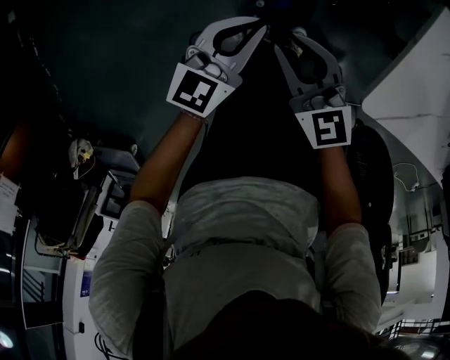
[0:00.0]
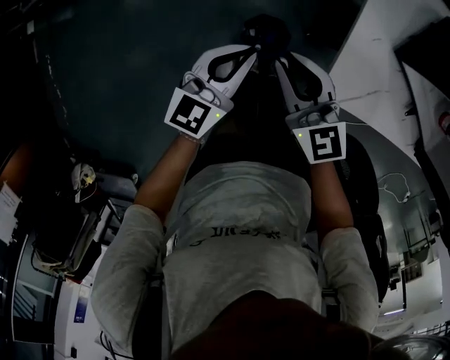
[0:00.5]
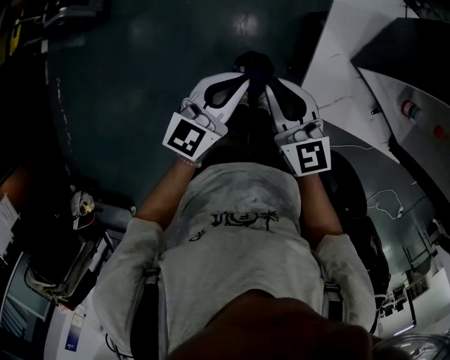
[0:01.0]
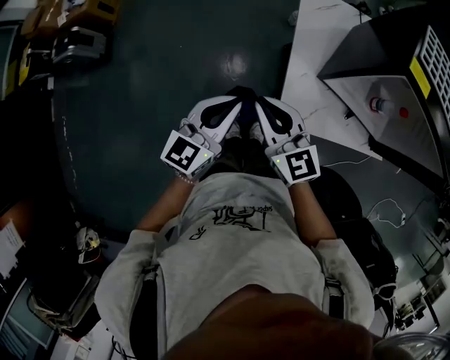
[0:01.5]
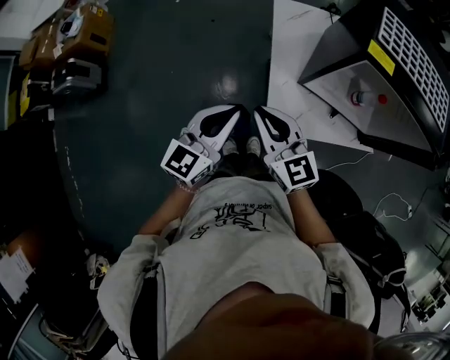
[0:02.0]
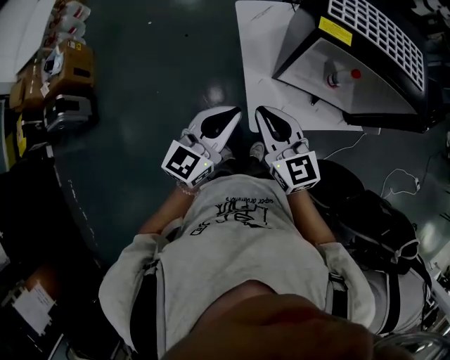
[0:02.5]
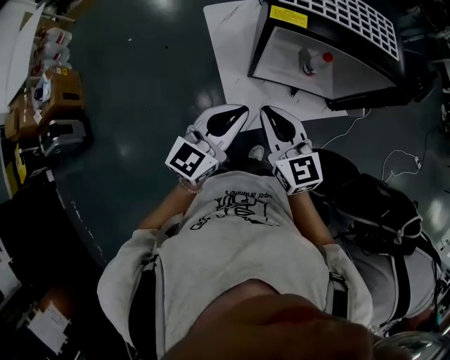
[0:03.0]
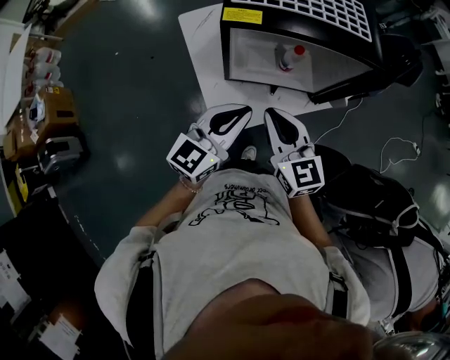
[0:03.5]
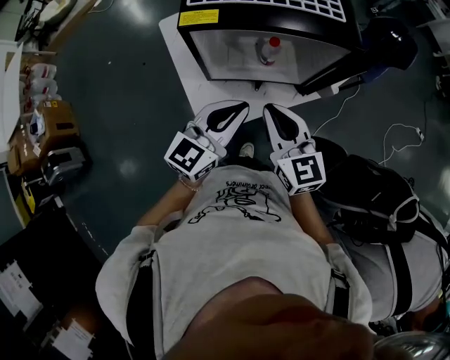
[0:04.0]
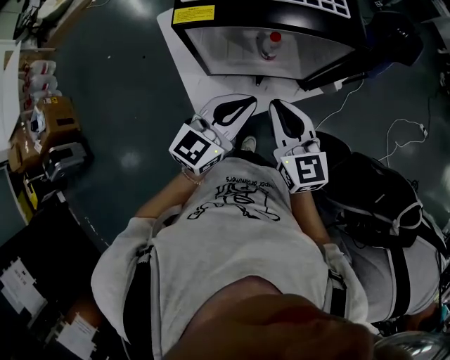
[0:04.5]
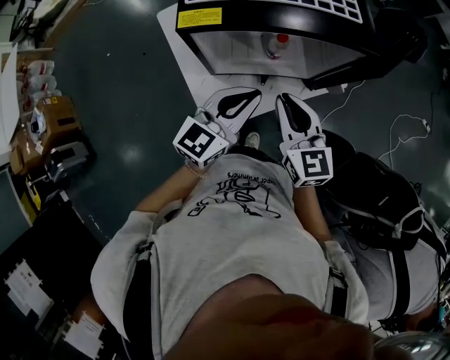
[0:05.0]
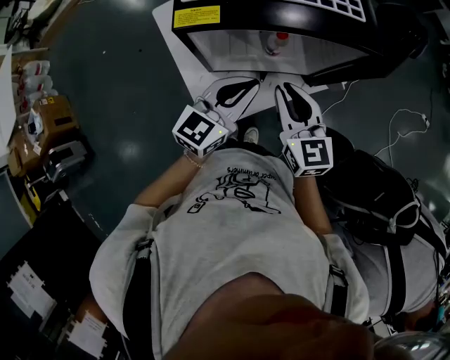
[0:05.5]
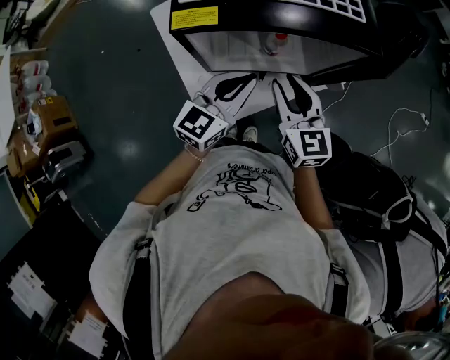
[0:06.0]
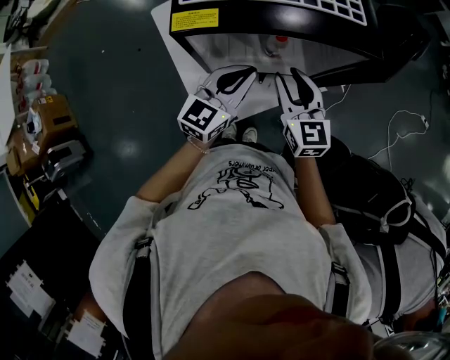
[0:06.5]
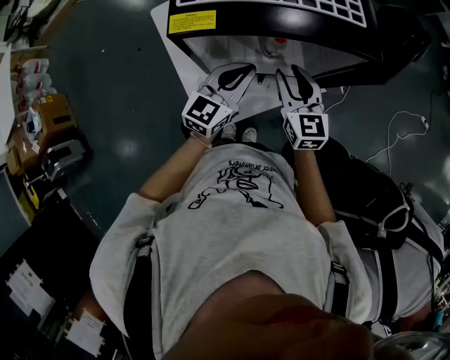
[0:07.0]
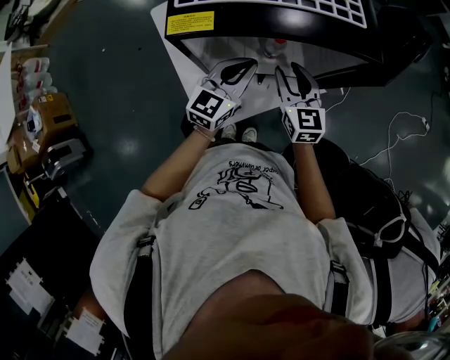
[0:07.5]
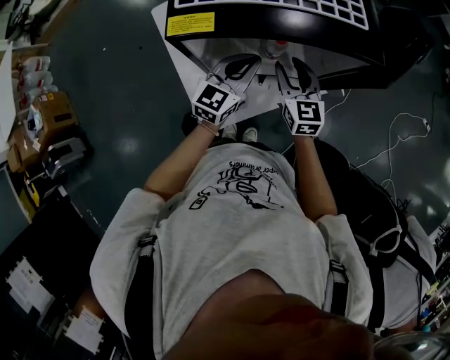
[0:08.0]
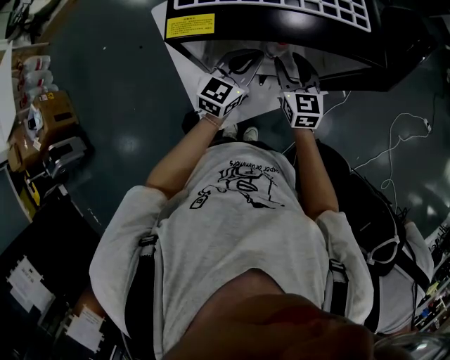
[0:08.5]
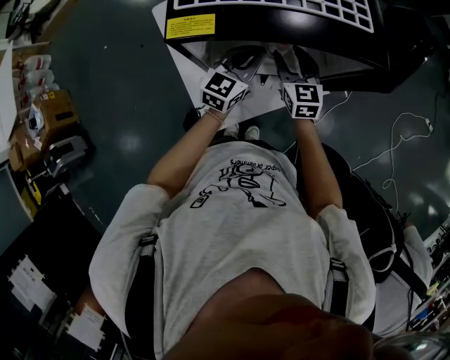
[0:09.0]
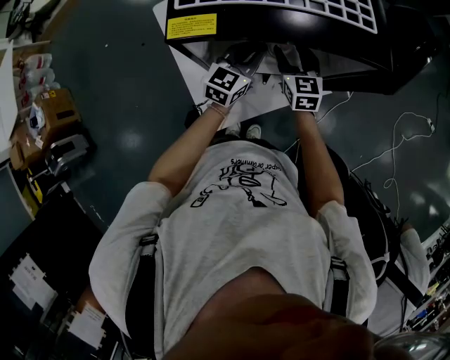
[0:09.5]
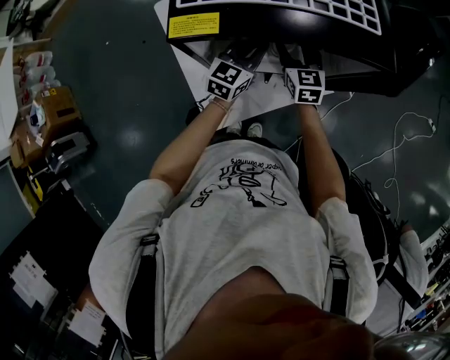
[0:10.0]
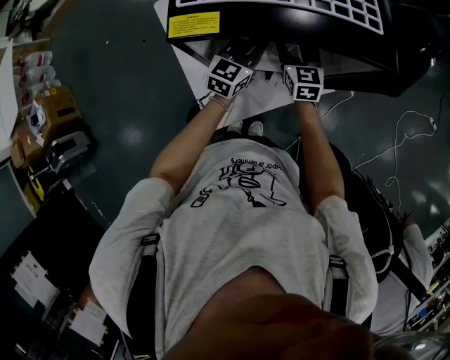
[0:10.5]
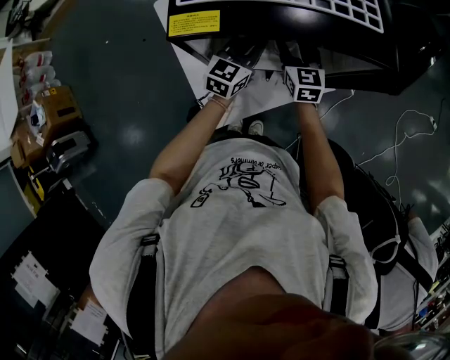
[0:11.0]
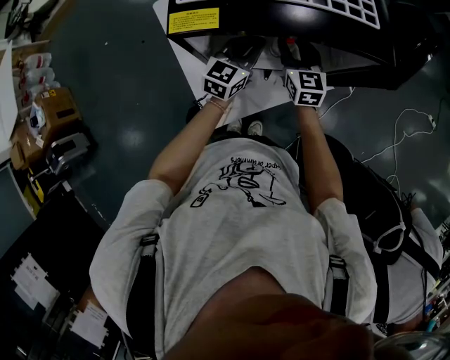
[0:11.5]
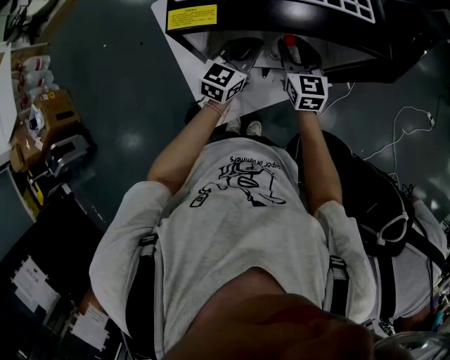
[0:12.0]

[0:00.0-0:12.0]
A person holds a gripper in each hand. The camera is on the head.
0:00.0 to 0:02.0: Both grippers move upward, some 40 cm. The left gripper turns by roughly 20 degrees. The right gripper rotates approximately 20 degrees.
0:02.0 to 0:04.0: The left gripper changes place by about 30 cm, and changes its angle by approximately 30 degrees. The right gripper changes place by roughly 30 cm, and changes its angle by roughly 30 degrees.
0:04.0 to 0:06.0: The grippers both shift forward by some 10 cm.
0:06.0 to 0:08.0: Both grippers move forward and downward, some 10 cm.
0:08.0 to 0:10.0: The right gripper shifts roughly 10 cm forward, while the left gripper is displaced forward and downward by approximately 10 cm.
0:10.0 to 0:12.0: The right gripper shifts approximately 5 cm backward. The left gripper shifts by roughly 5 cm.

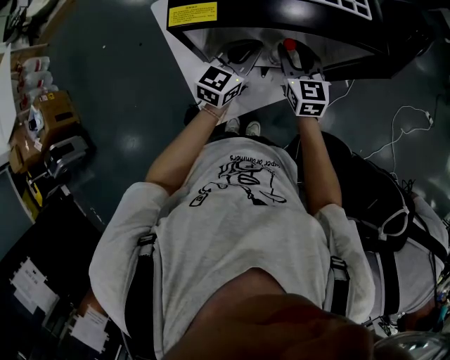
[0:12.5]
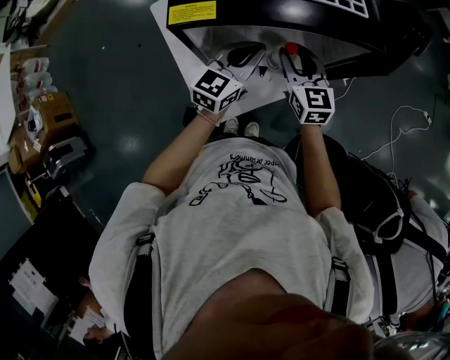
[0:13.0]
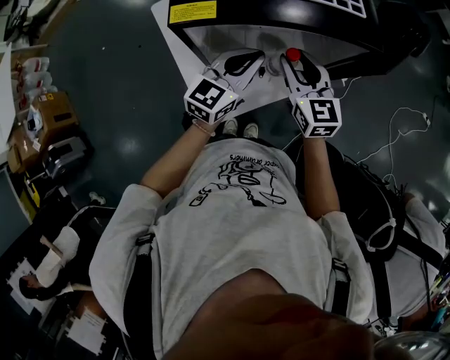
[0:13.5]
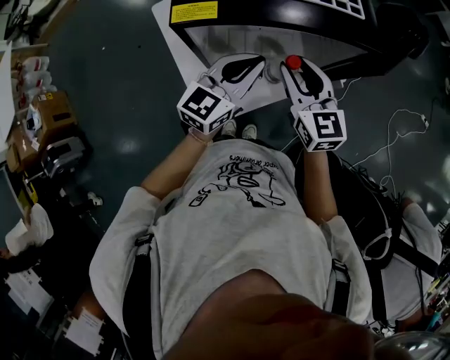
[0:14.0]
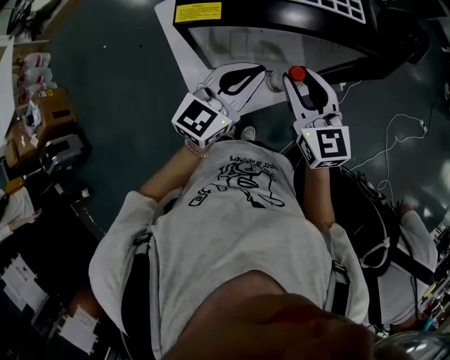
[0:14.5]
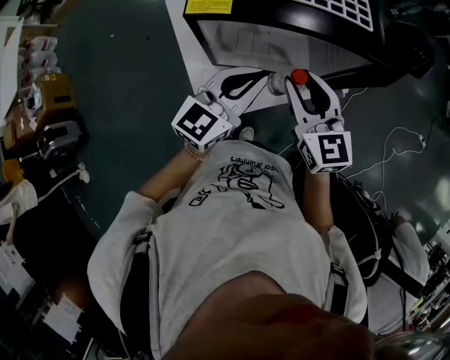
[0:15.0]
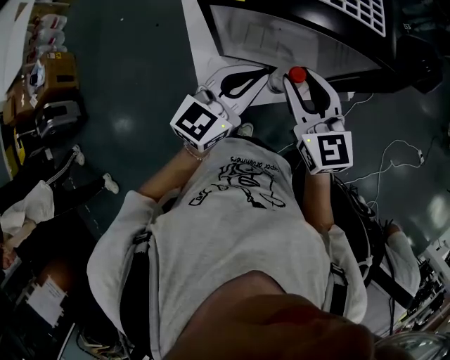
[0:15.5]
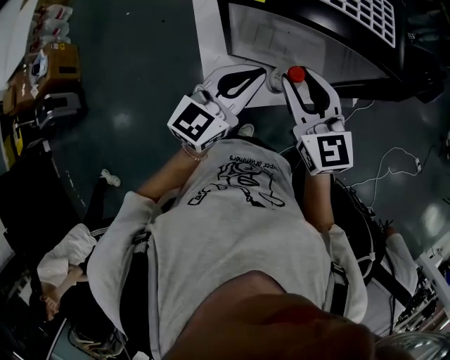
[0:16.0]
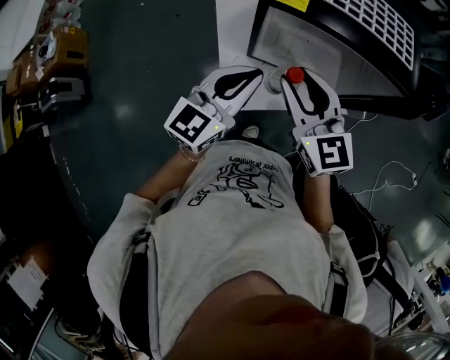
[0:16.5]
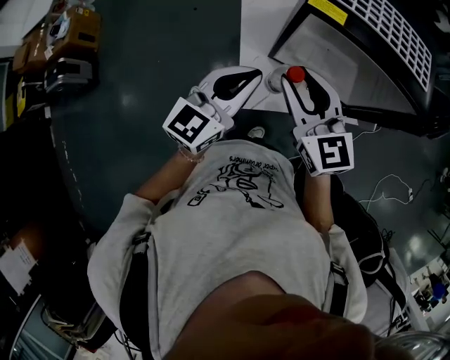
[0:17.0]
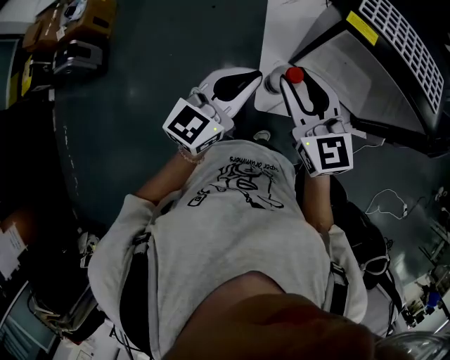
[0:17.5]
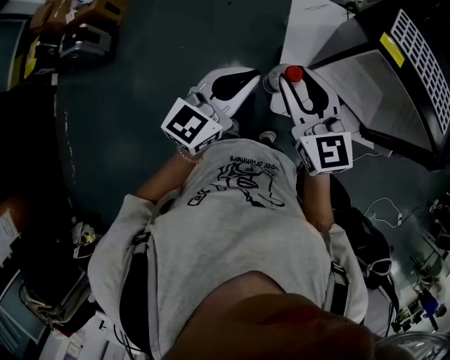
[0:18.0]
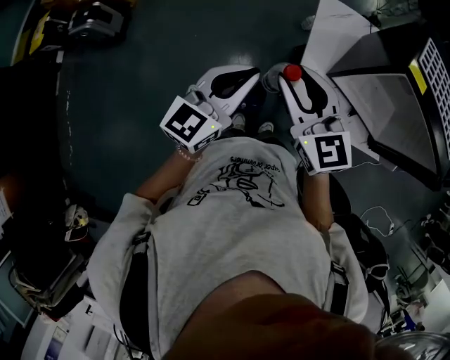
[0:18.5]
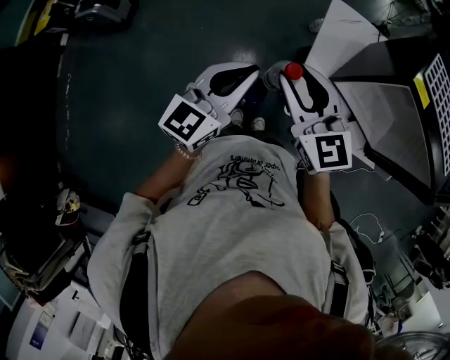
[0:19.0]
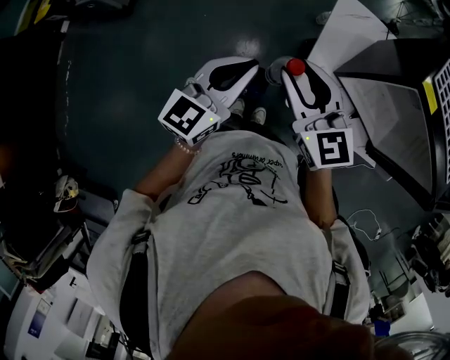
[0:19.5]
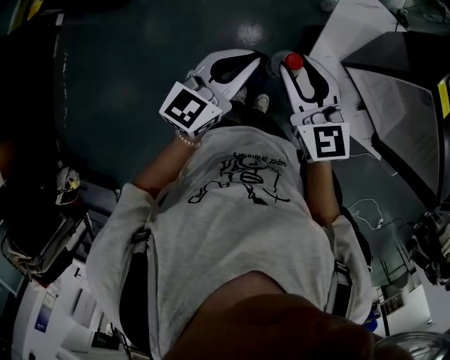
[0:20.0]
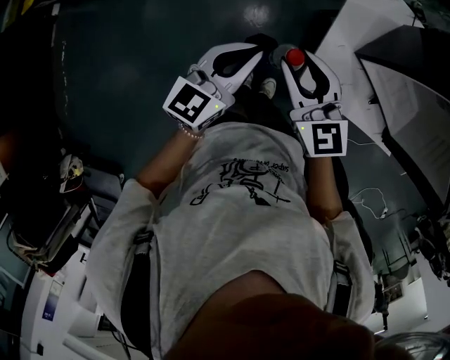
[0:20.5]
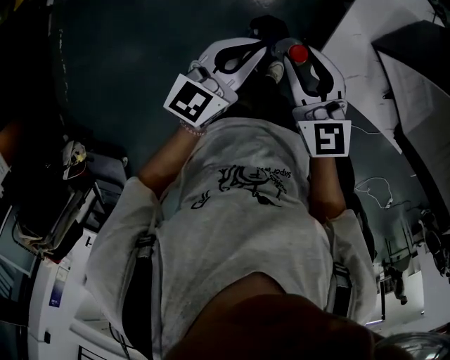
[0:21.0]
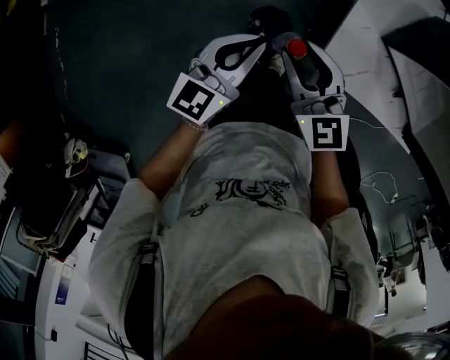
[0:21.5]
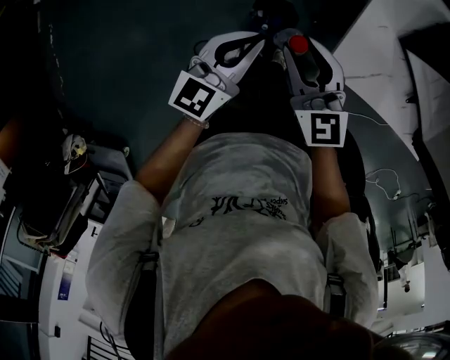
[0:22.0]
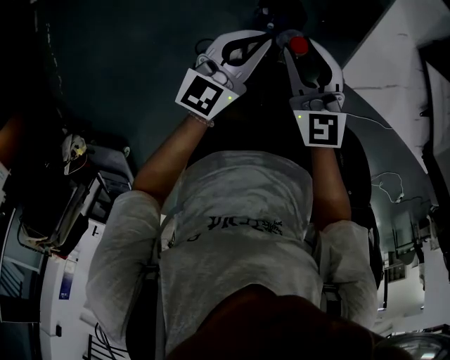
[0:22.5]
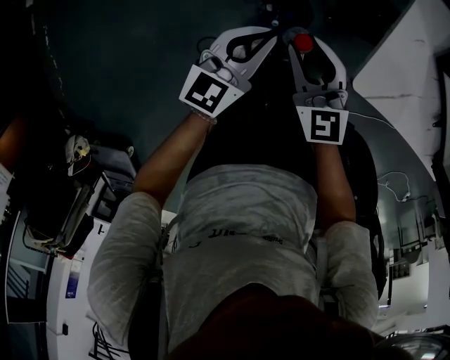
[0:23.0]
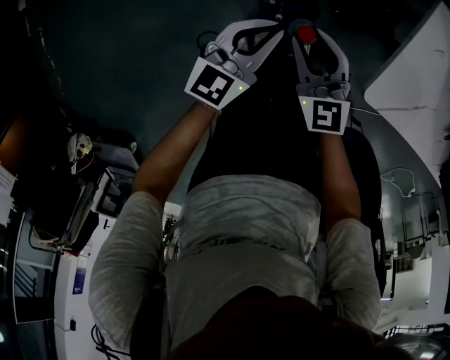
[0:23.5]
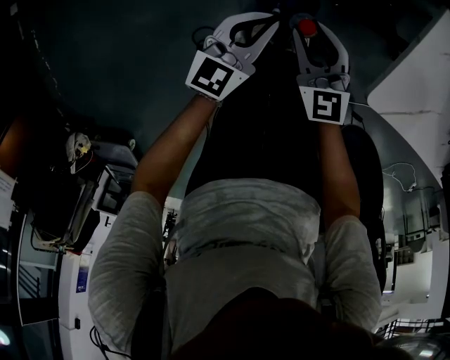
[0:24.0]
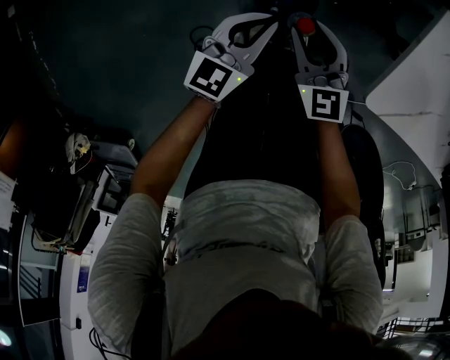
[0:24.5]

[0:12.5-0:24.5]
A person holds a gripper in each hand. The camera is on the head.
0:12.5 to 0:14.5: Both grippers move upward and backward, about 15 cm.
0:14.5 to 0:16.5: The right gripper moves to the left, roughly 10 cm, and turns by approximately 20 degrees; the left gripper moves to the left and backward, some 10 cm.
0:16.5 to 0:18.5: The grippers both shift to the left by approximately 30 cm. The right gripper rotates approximately 20 degrees. Meanwhile the left gripper turns by roughly 20 degrees.
0:18.5 to 0:20.5: Both grippers move downward, roughly 10 cm.
0:20.5 to 0:22.5: The grippers both shift downward by approximately 25 cm.
0:22.5 to 0:24.5: The grippers both shift downward by approximately 20 cm.

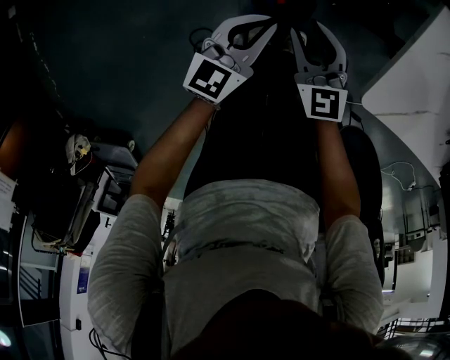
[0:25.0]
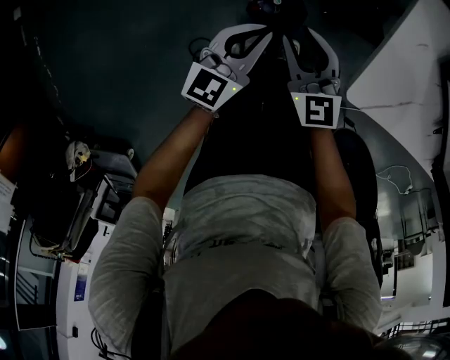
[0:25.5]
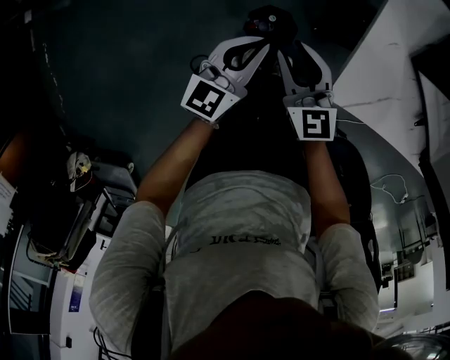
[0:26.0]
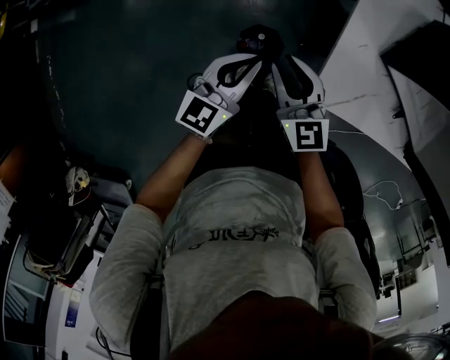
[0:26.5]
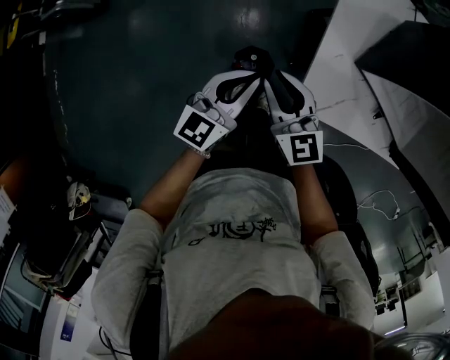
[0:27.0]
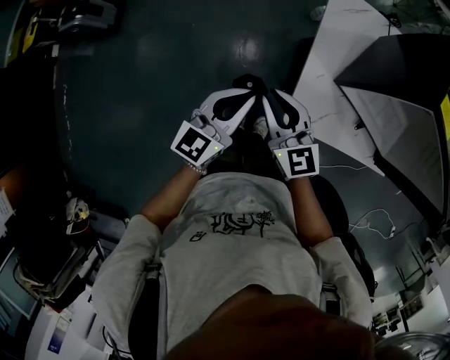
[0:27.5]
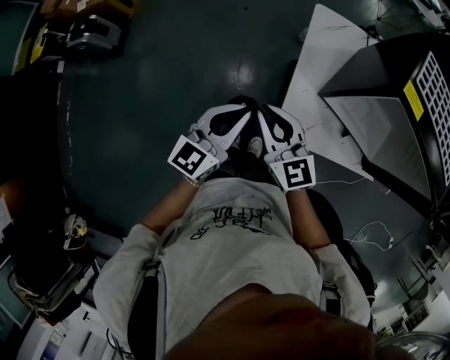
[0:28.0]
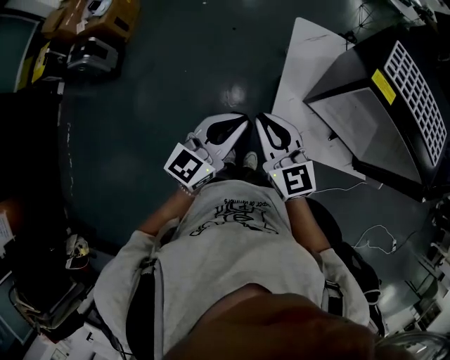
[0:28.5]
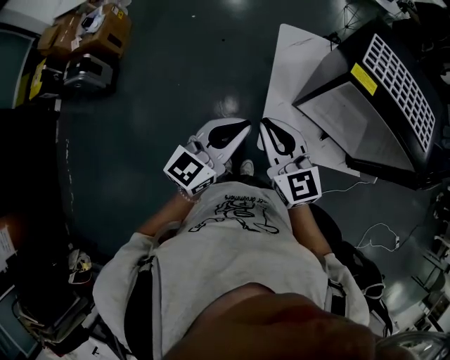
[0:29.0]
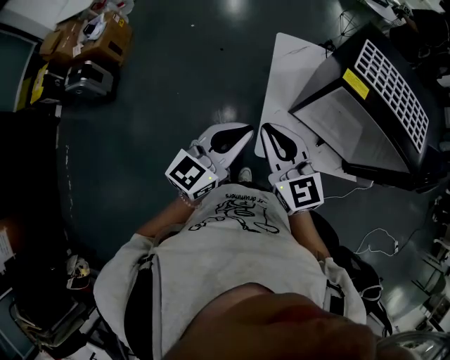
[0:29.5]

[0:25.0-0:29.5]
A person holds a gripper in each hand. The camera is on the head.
0:25.0 to 0:27.0: The grippers both shift upward by approximately 30 cm.
0:27.0 to 0:29.5: The grippers both shift upward by roughly 30 cm.
